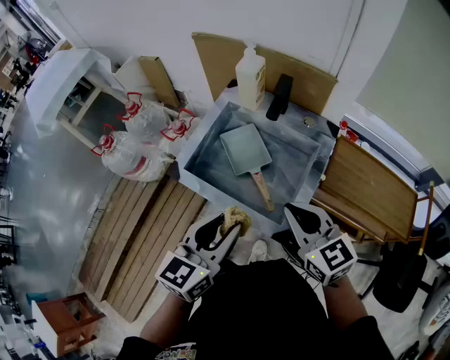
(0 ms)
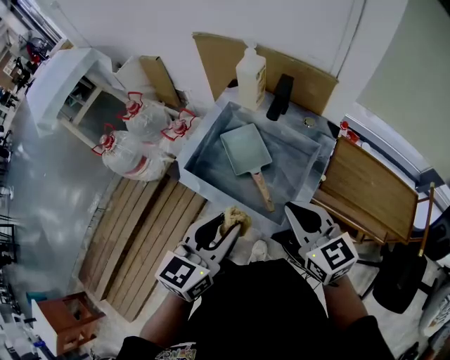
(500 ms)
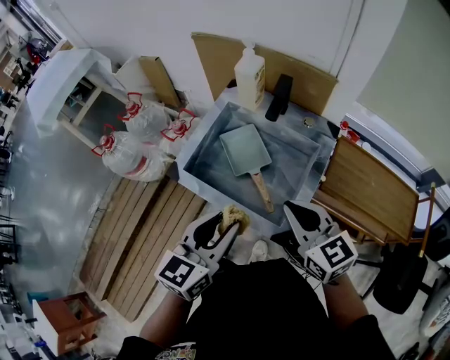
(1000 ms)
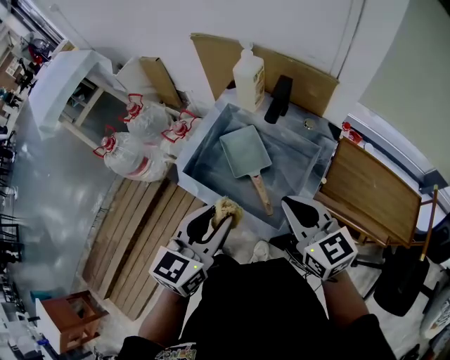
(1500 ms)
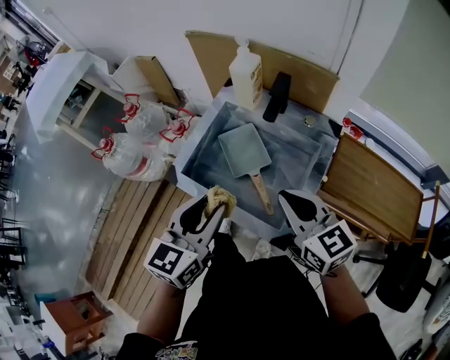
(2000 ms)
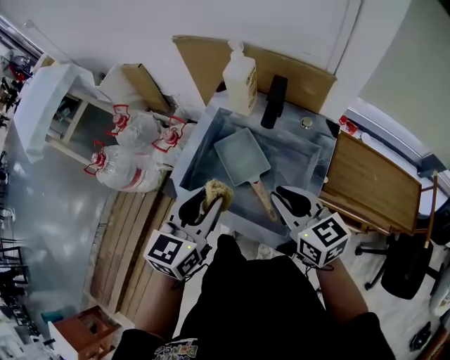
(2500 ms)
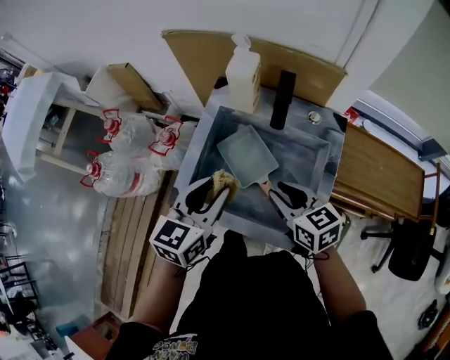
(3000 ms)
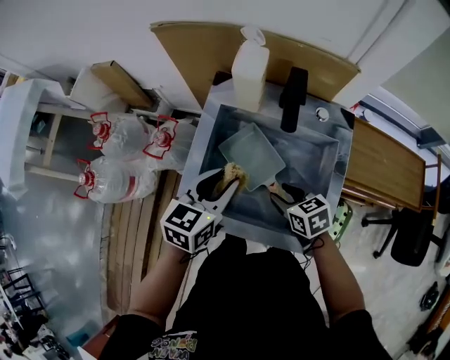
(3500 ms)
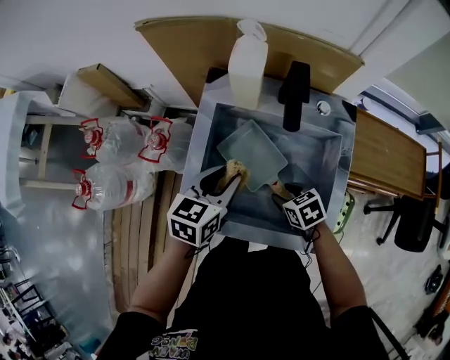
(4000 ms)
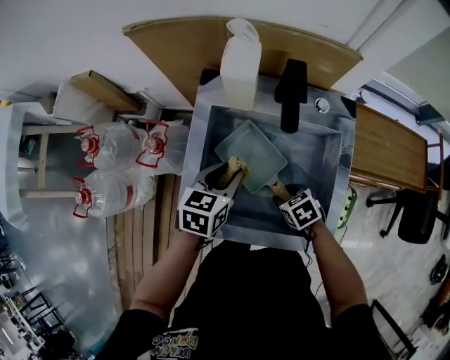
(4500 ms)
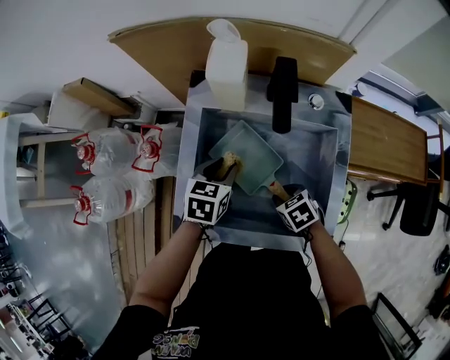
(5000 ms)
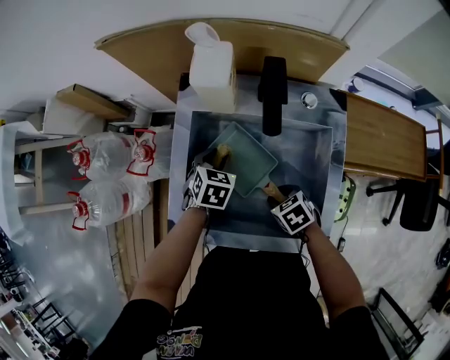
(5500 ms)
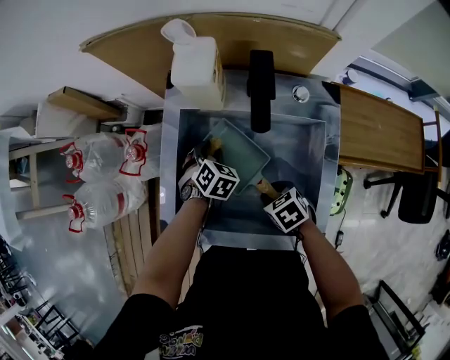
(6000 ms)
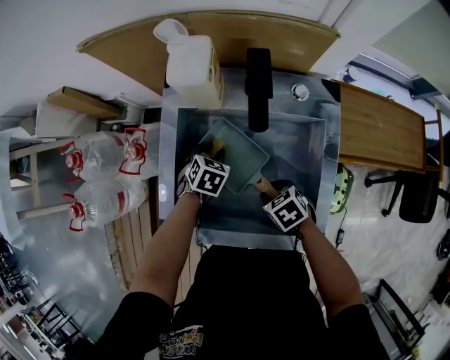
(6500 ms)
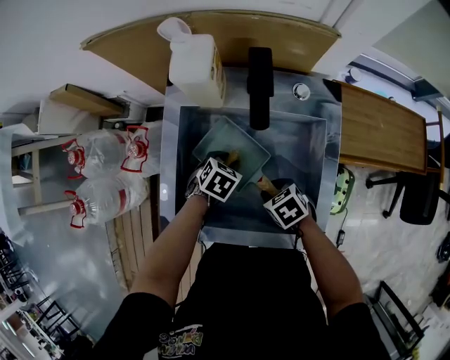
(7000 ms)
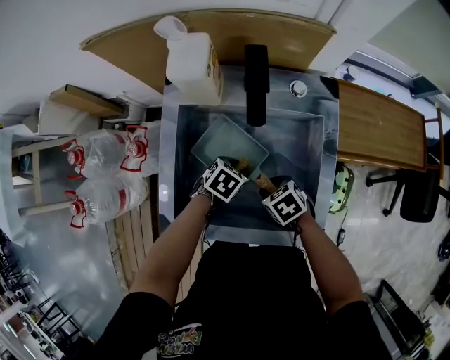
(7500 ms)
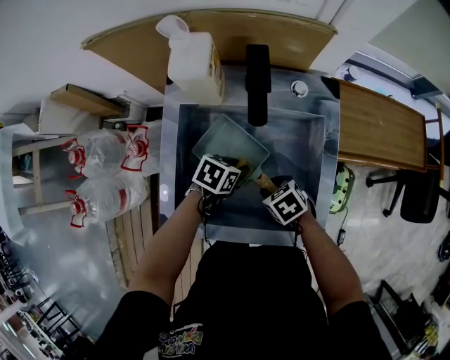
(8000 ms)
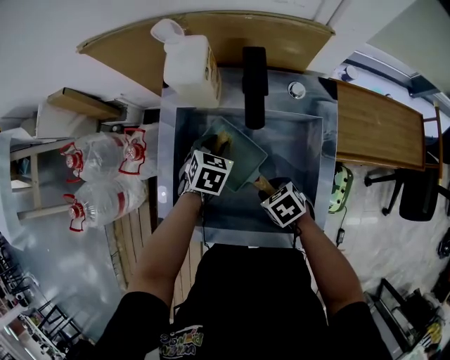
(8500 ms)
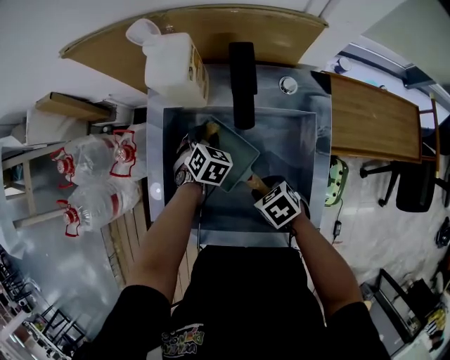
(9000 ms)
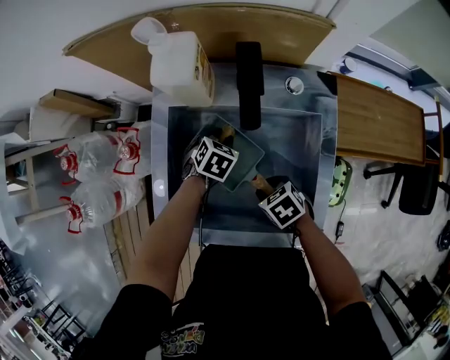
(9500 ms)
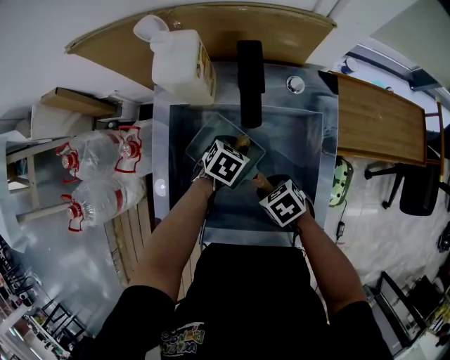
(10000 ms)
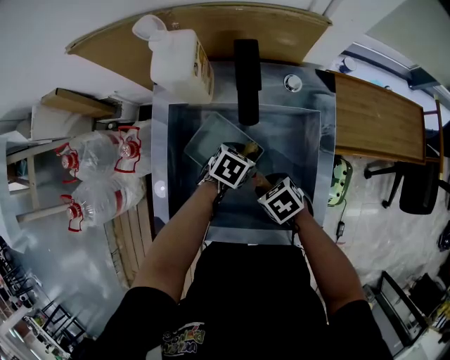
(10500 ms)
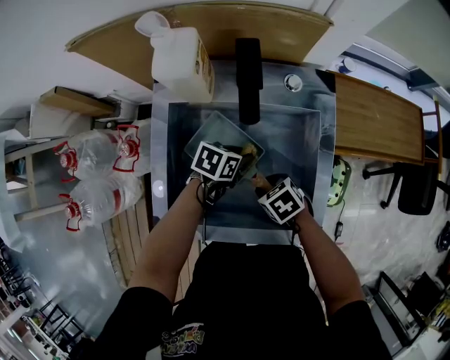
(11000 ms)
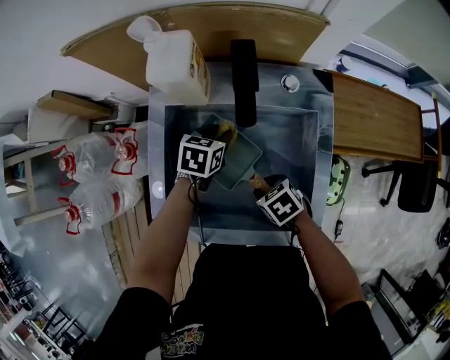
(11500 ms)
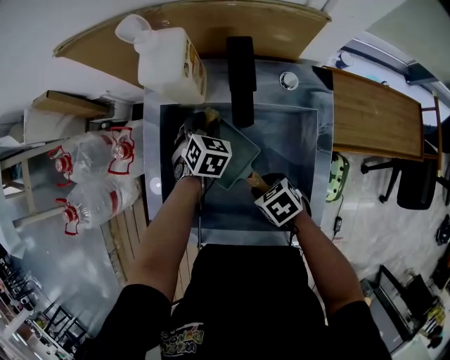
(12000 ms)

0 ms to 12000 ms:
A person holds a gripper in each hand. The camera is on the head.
0 ms to 2000 ms: The grippers both shift forward by roughly 5 cm.
2000 ms to 4000 ms: The right gripper moves downward, about 30 cm, tilts its fingers about 40 degrees downward, and opens up. Meanwhile the left gripper heads forward and downward, covering approximately 25 cm, and turns by roughly 30 degrees.
4000 ms to 6000 ms: The left gripper moves downward and forward, some 20 cm, and swivels approximately 50 degrees.
6000 ms to 8000 ms: The left gripper moves about 10 cm, and swivels some 40 degrees.
10000 ms to 12000 ms: The left gripper changes place by approximately 10 cm, and rotates about 30 degrees.

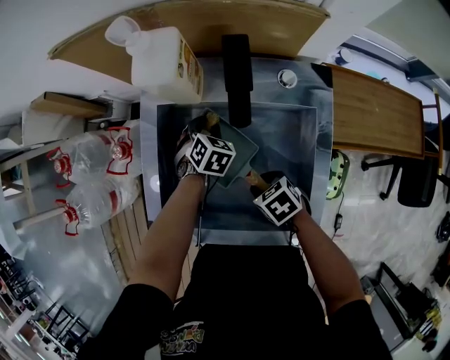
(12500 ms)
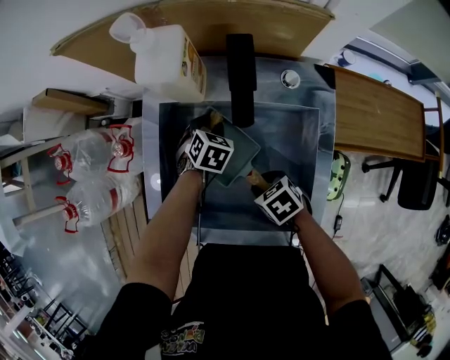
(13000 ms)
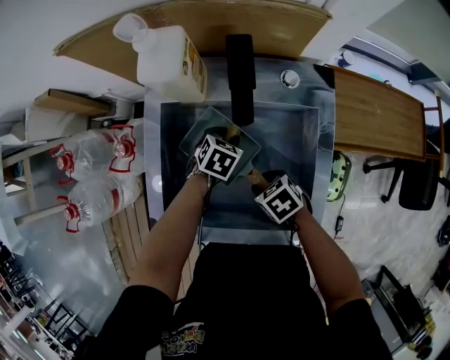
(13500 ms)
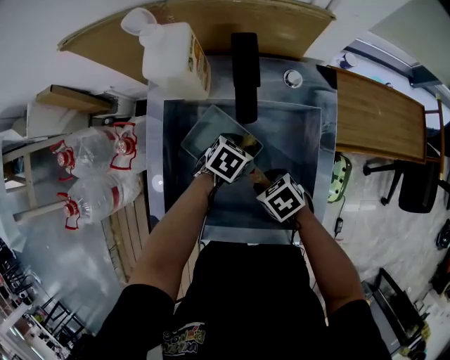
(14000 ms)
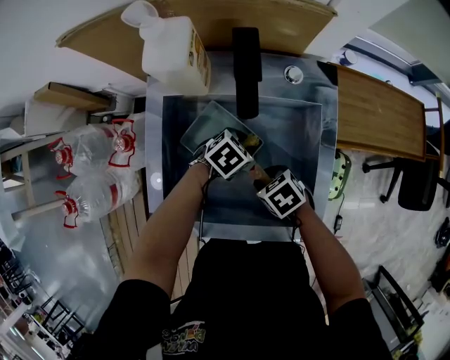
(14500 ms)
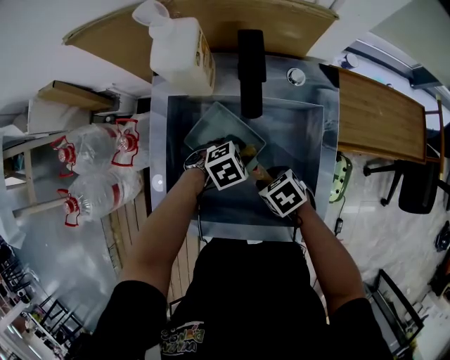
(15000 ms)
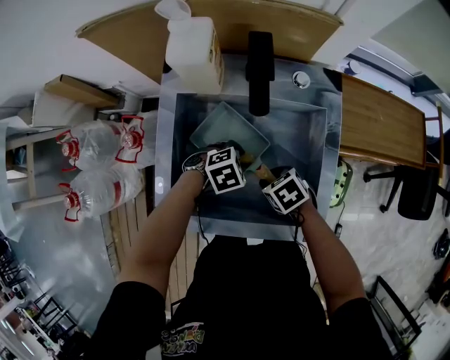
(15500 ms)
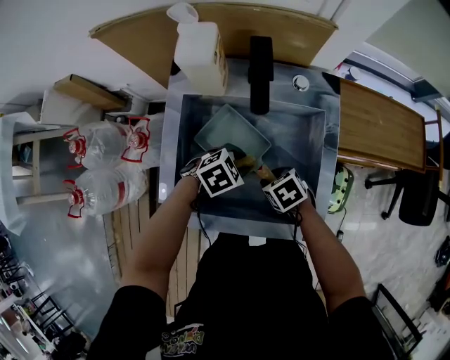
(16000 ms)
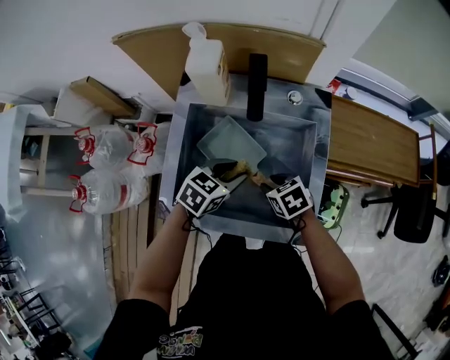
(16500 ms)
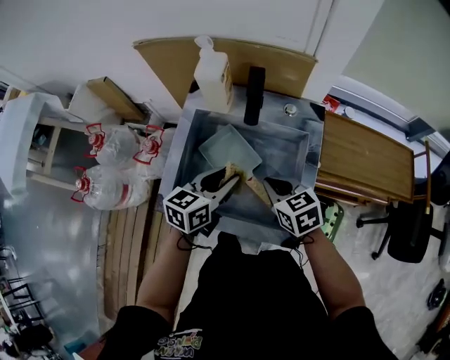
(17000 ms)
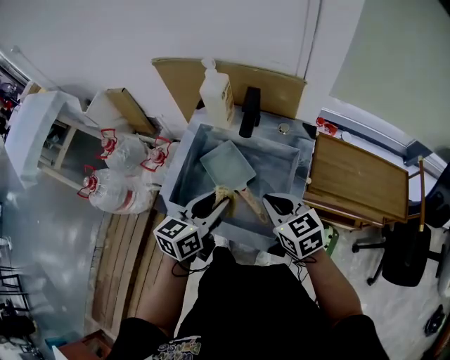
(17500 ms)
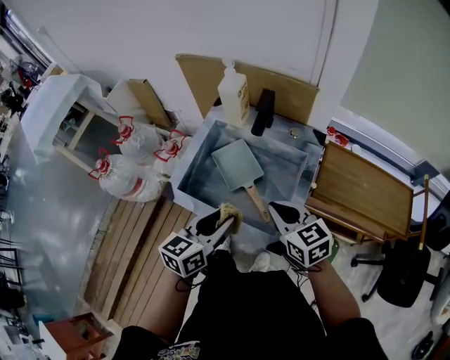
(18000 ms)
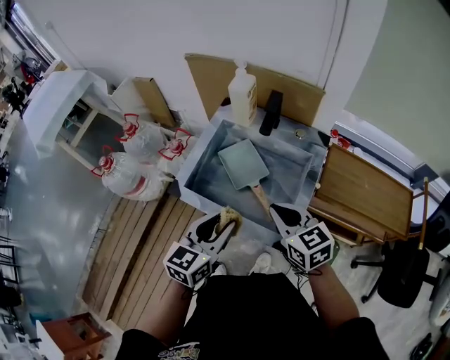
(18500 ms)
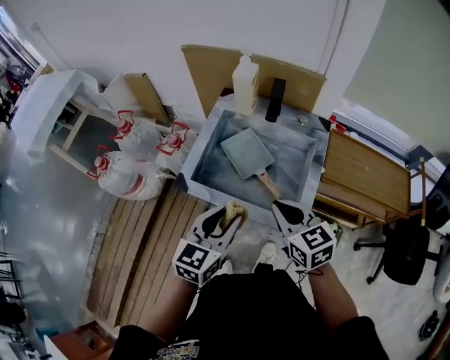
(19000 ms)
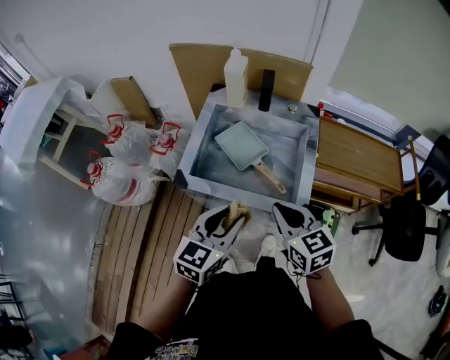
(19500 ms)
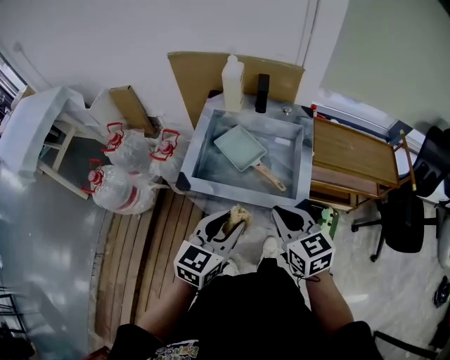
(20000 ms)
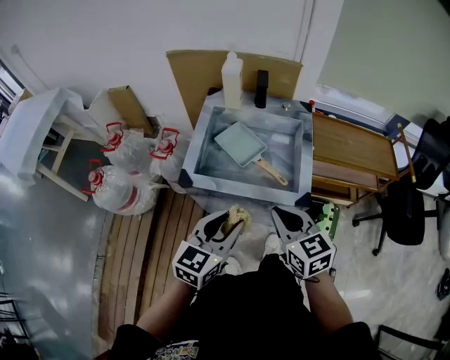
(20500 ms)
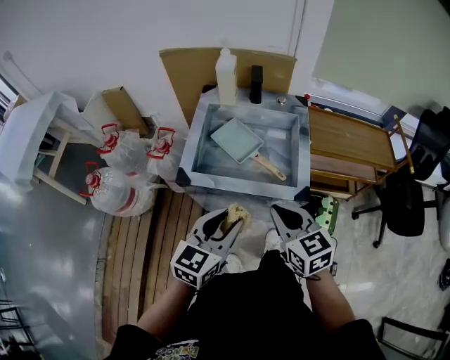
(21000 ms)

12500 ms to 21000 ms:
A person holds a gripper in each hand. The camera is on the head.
12500 ms to 14500 ms: The left gripper moves roughly 15 cm, and changes its angle by some 40 degrees.
14500 ms to 16500 ms: The right gripper travels upward by about 5 cm. The left gripper moves upward, about 15 cm, and rotates some 30 degrees.
16500 ms to 19000 ms: The left gripper is displaced backward and upward by some 25 cm, and swivels roughly 40 degrees; the right gripper shifts approximately 25 cm upward and backward, tilts its fingers roughly 30 degrees upward, and closes.
19000 ms to 21000 ms: The two grippers go about 10 cm backward.

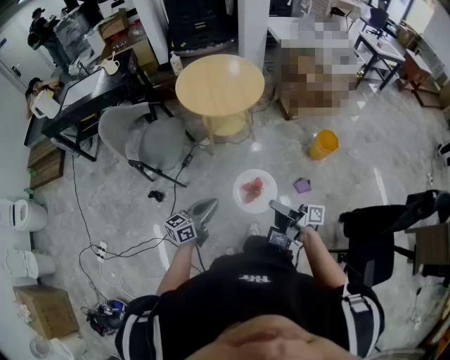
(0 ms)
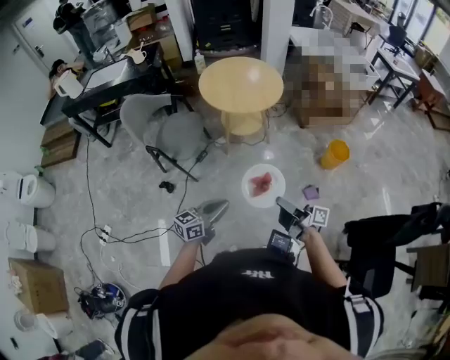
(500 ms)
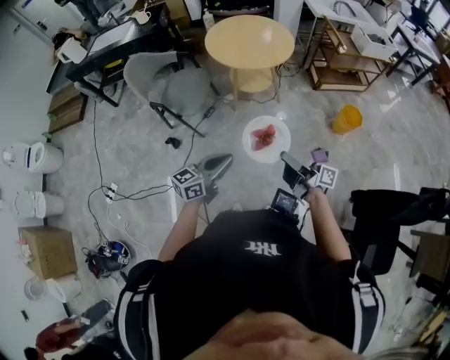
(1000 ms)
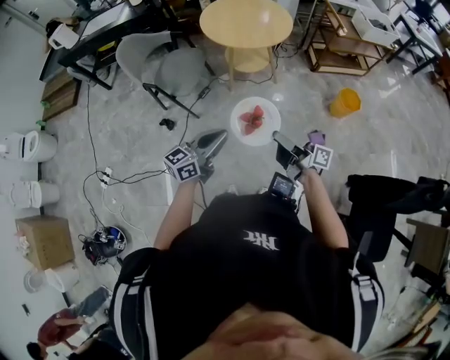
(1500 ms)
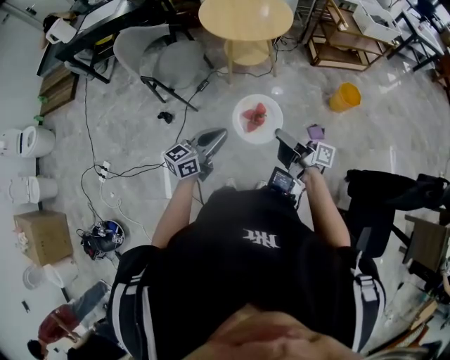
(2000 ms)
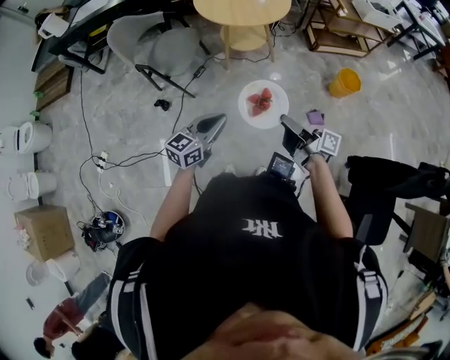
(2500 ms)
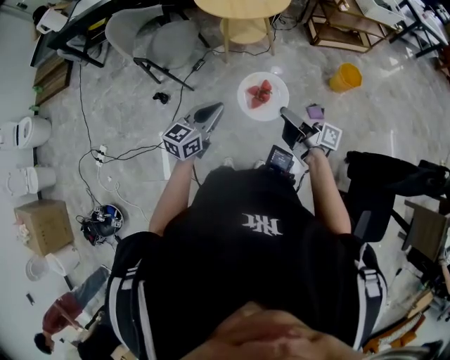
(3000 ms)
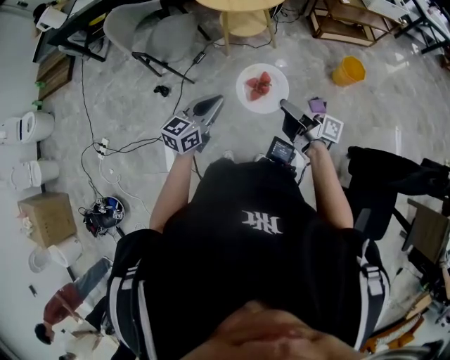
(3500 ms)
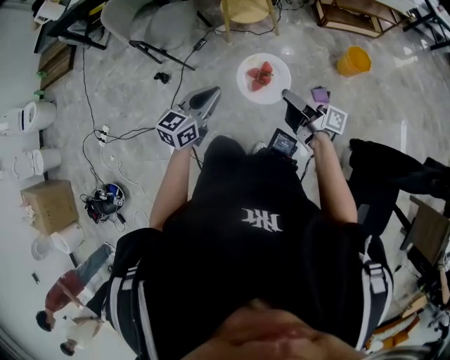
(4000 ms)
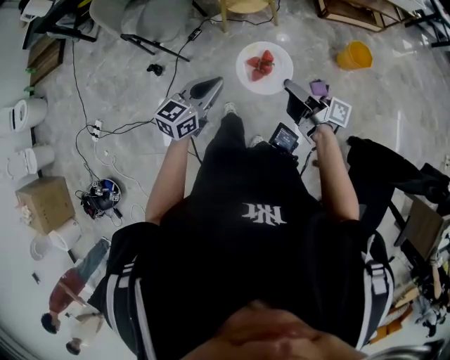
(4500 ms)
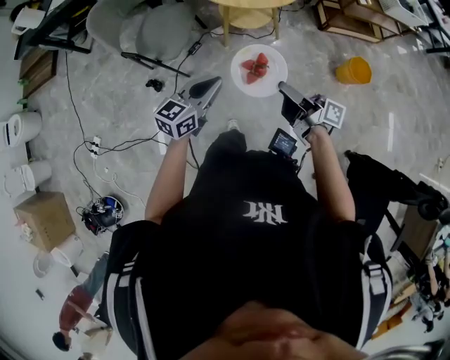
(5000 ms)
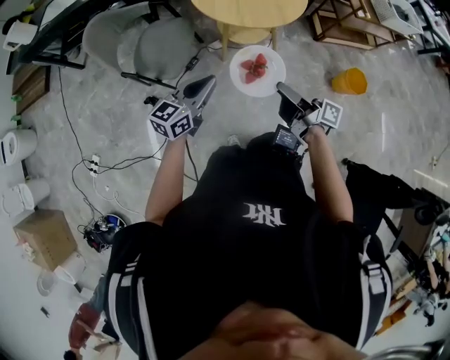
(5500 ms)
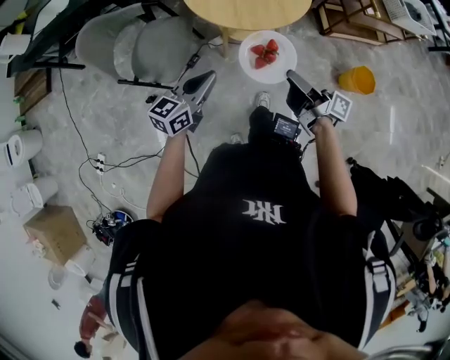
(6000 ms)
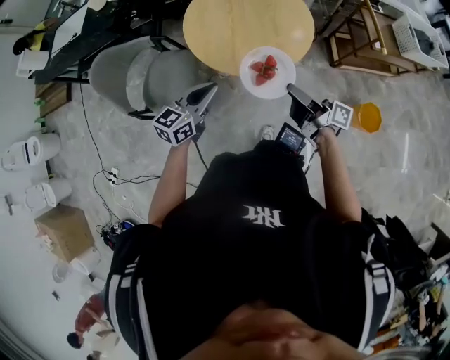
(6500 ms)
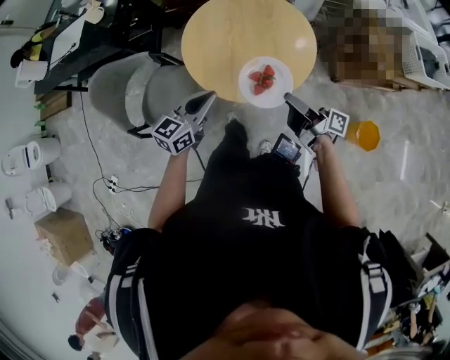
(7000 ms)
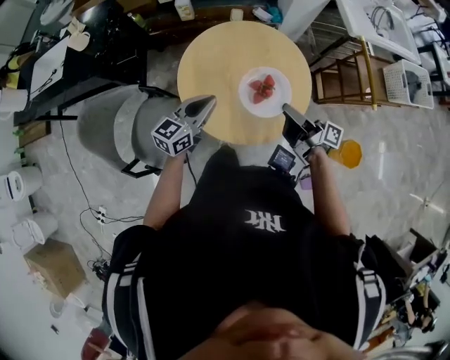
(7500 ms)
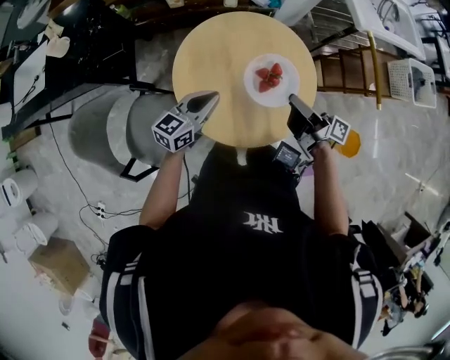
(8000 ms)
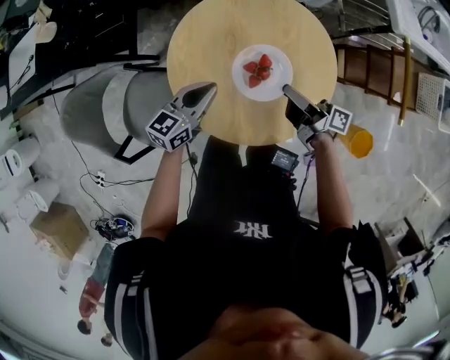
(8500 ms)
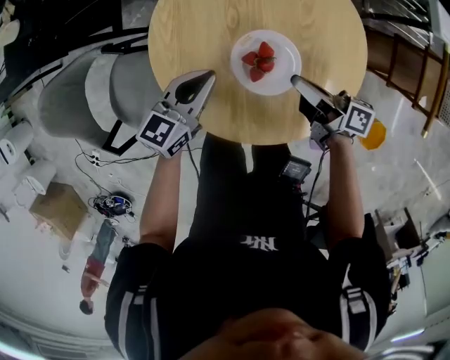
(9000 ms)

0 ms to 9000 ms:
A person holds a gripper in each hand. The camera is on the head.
0 ms to 2000 ms: The right gripper changes place by roughly 5 cm. The left gripper goes some 10 cm backward.
2000 ms to 4500 ms: Both grippers move to the right, roughly 5 cm.
4500 ms to 7000 ms: The pair of grippers is taken forward, about 50 cm.
7000 ms to 9000 ms: The two grippers go approximately 25 cm forward and downward. The right gripper rotates some 20 degrees.
